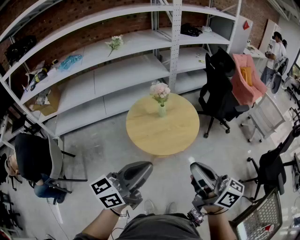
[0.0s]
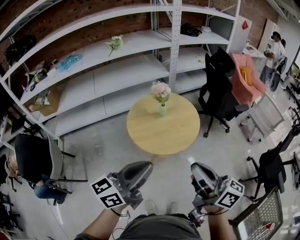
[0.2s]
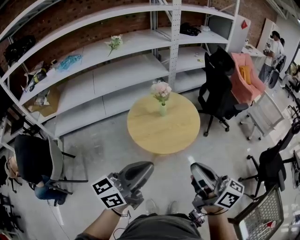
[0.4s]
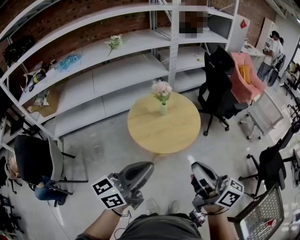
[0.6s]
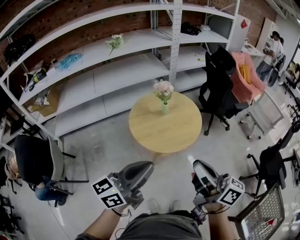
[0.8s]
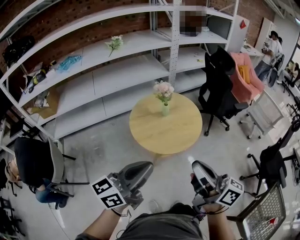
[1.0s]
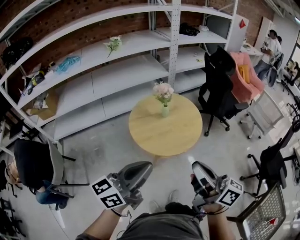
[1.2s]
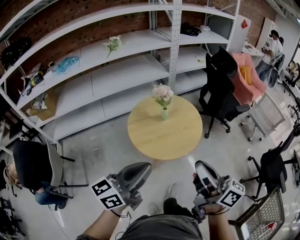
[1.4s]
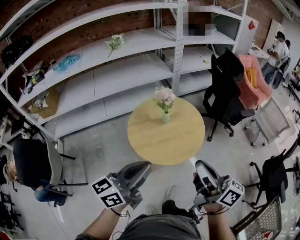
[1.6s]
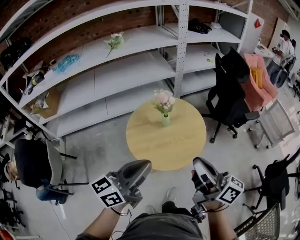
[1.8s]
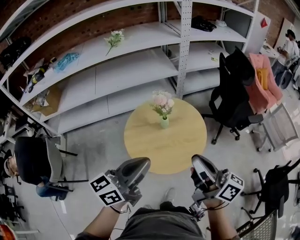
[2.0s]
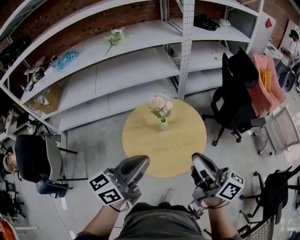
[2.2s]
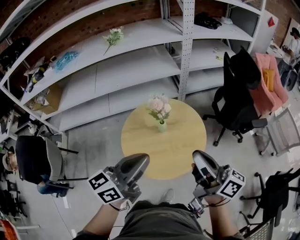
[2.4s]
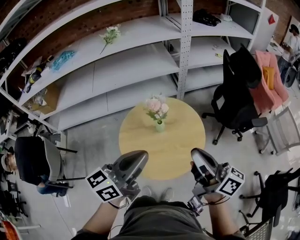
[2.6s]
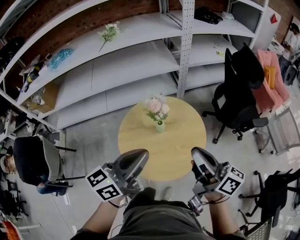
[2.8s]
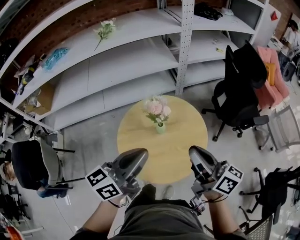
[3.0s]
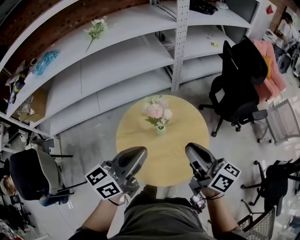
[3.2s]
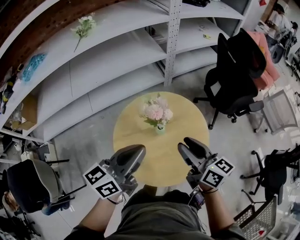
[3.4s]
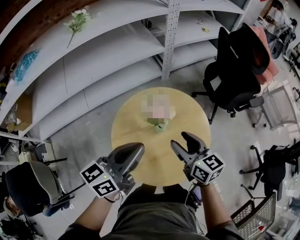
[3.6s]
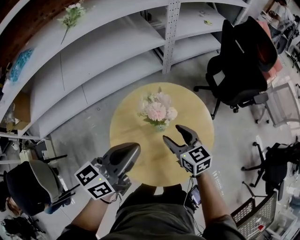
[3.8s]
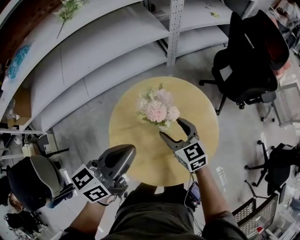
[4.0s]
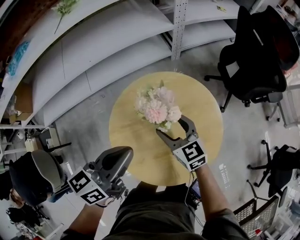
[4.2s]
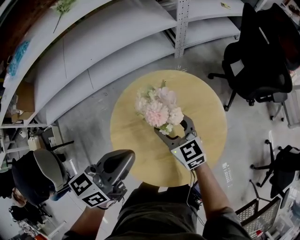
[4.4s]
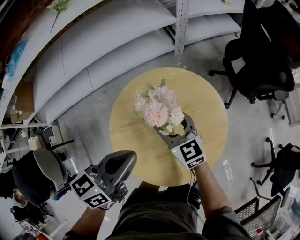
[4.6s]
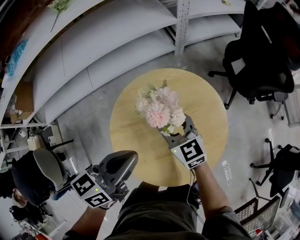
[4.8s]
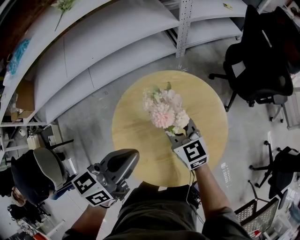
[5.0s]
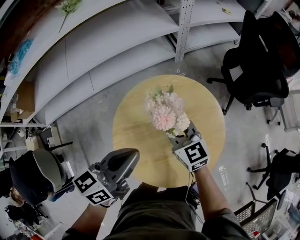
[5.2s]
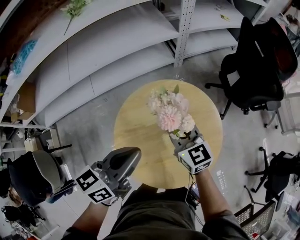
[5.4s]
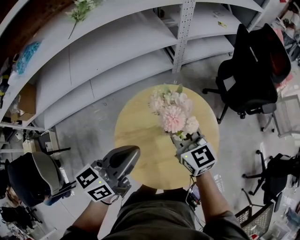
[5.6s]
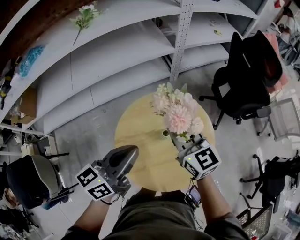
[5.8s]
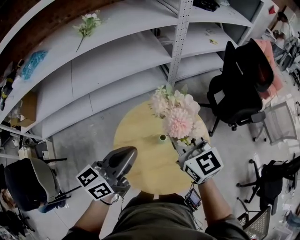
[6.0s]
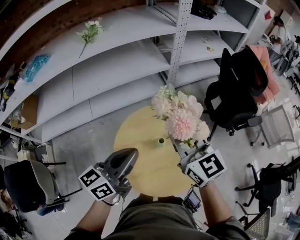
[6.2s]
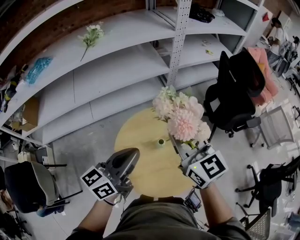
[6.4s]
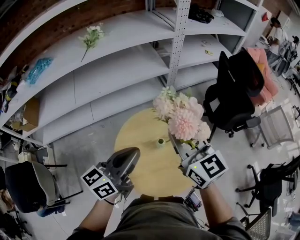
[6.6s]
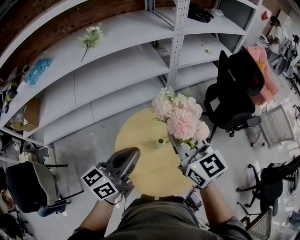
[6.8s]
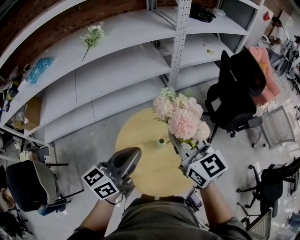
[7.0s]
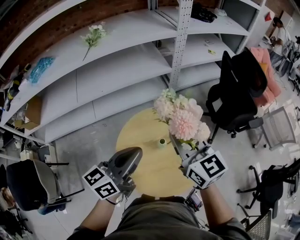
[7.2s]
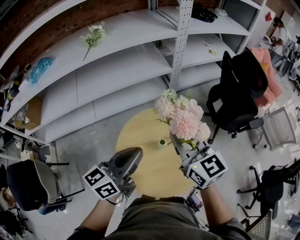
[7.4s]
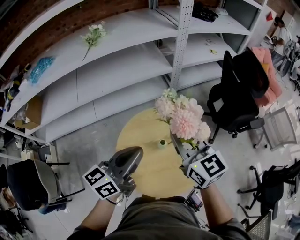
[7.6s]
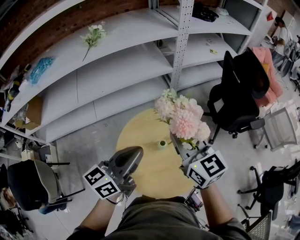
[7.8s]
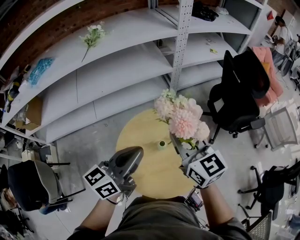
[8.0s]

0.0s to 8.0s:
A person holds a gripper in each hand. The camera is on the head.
0.0s to 1.6s: The two grippers go about 10 cm forward.
1.6s to 3.2s: Both grippers travel together forward, some 25 cm.
3.2s to 4.8s: The left gripper heads downward and forward, covering approximately 15 cm; the right gripper travels downward, forward and to the left by some 30 cm, rotates approximately 40 degrees, and opens.
4.8s to 6.4s: The left gripper travels upward by approximately 10 cm. The right gripper travels upward by approximately 25 cm, and closes up.
6.4s to 8.0s: There are only small adjustments of the grippers.

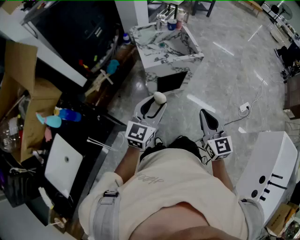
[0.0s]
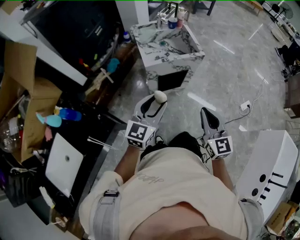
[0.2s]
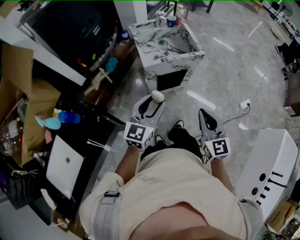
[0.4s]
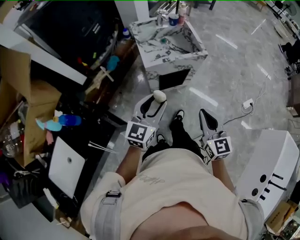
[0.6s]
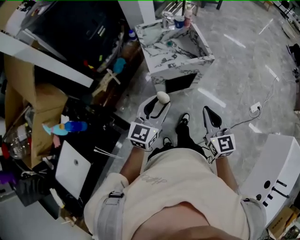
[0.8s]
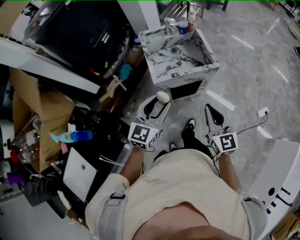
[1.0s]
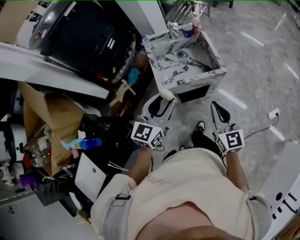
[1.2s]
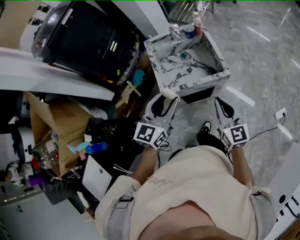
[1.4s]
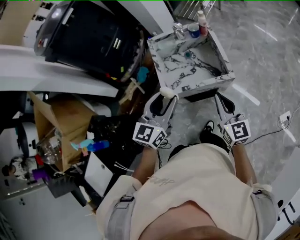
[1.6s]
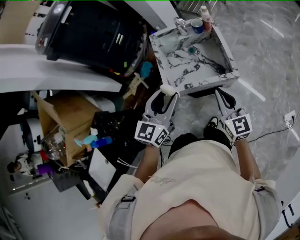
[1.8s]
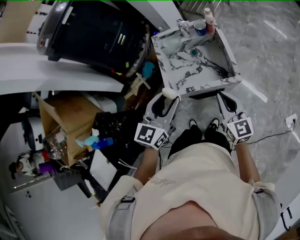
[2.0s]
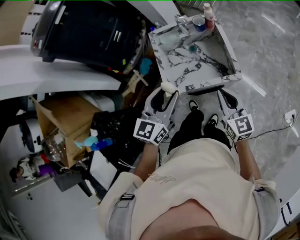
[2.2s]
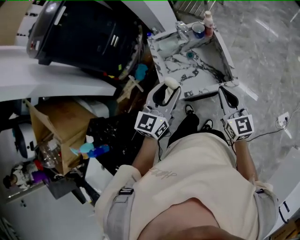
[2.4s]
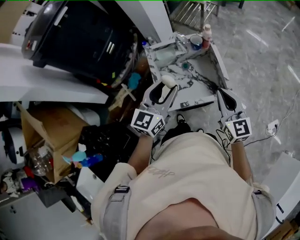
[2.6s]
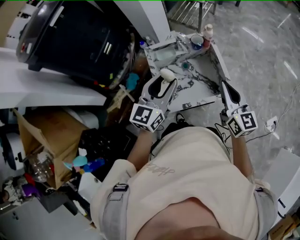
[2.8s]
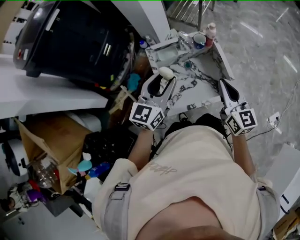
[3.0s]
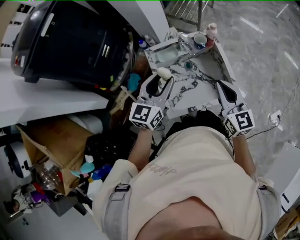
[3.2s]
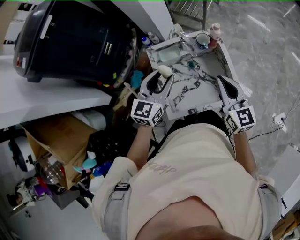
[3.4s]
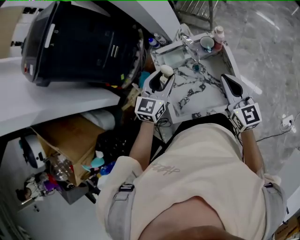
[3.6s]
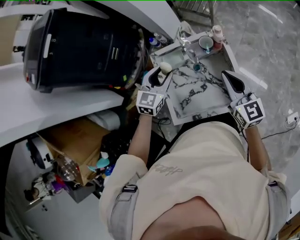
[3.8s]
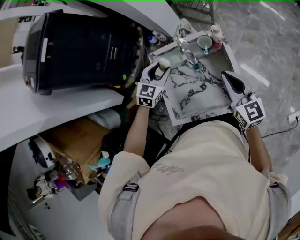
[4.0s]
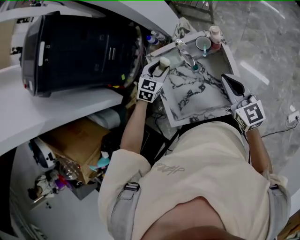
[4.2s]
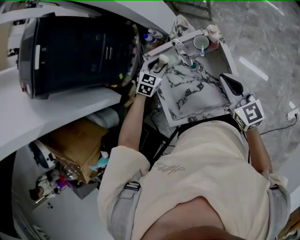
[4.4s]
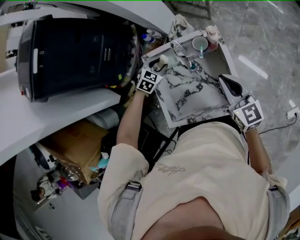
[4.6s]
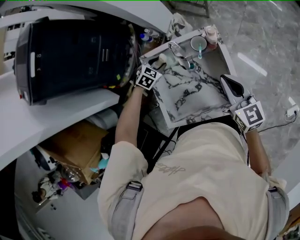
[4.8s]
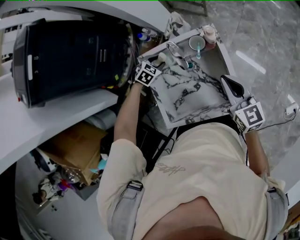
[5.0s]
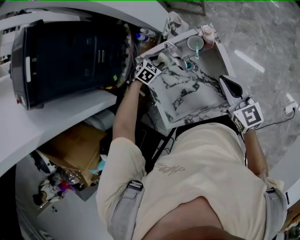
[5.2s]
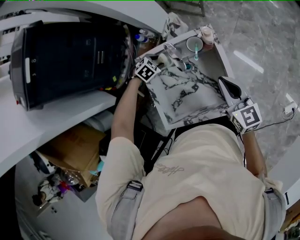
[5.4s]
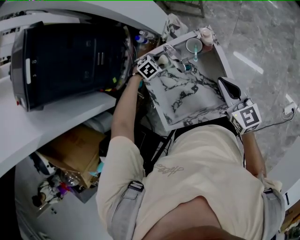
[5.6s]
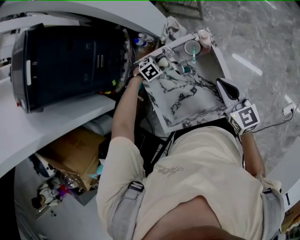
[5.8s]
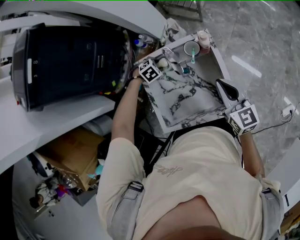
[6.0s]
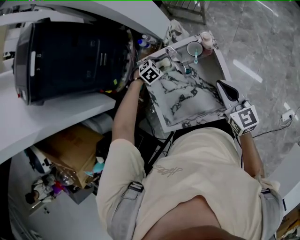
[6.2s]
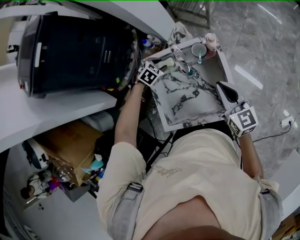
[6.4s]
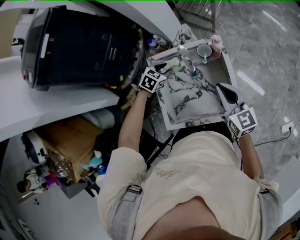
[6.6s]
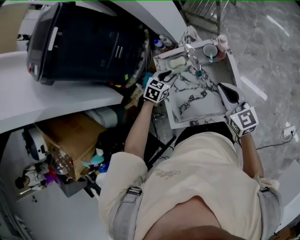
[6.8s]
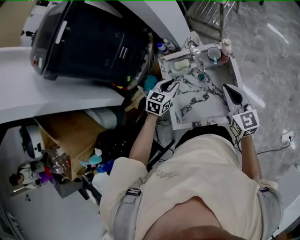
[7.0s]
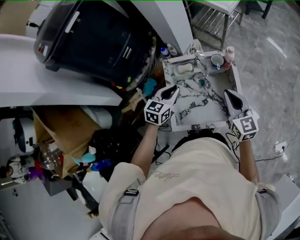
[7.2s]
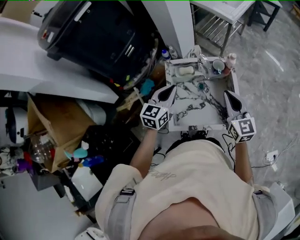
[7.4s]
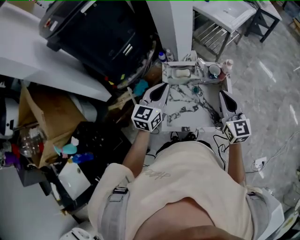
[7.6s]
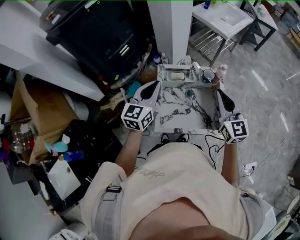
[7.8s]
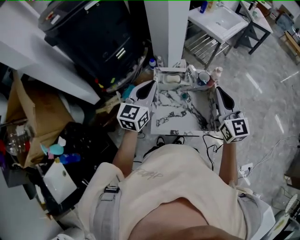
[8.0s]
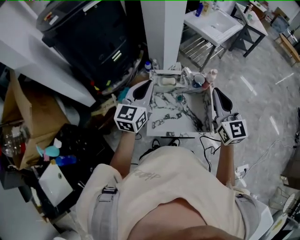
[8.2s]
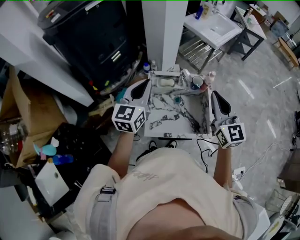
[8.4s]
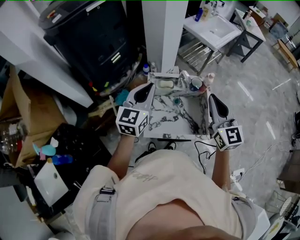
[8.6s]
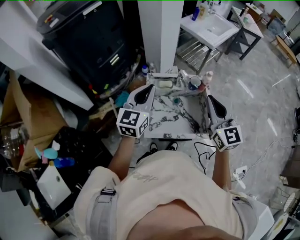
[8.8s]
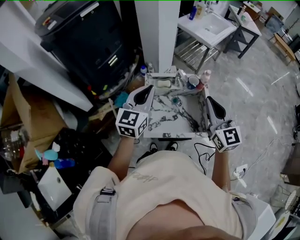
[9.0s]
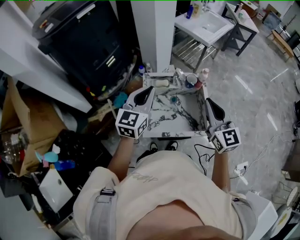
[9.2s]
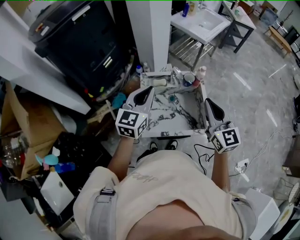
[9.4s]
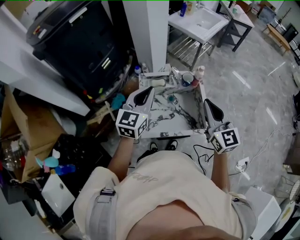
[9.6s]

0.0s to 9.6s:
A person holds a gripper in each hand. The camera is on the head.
0.0s to 1.6s: Both grippers travel together forward, approximately 30 cm.
1.6s to 3.2s: Both grippers move forward, some 20 cm.
3.2s to 4.8s: The right gripper moves forward, to the right and downward, some 15 cm, while the left gripper travels downward and forward by approximately 30 cm, and tips its fingers downward by roughly 50 degrees.
6.4s to 8.0s: The left gripper is displaced upward and backward by roughly 35 cm, points its fingers roughly 60 degrees further upward, and closes its fingers; the right gripper moves upward, approximately 15 cm, and changes its angle by roughly 20 degrees.
8.0s to 9.6s: The left gripper heads to the right, covering roughly 5 cm; the right gripper heads backward, covering some 5 cm.

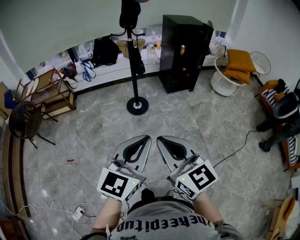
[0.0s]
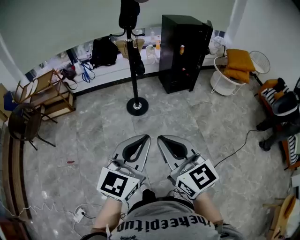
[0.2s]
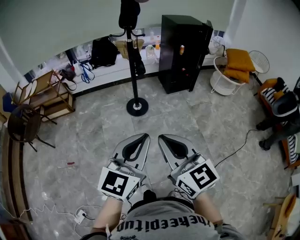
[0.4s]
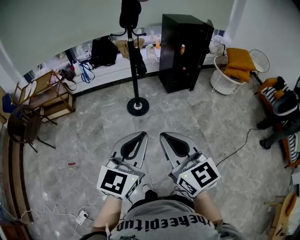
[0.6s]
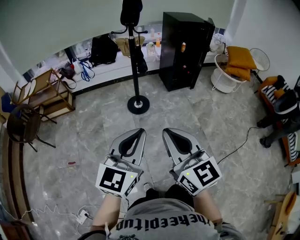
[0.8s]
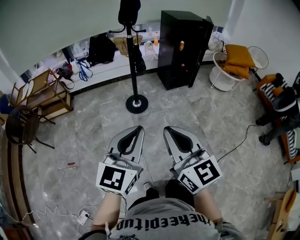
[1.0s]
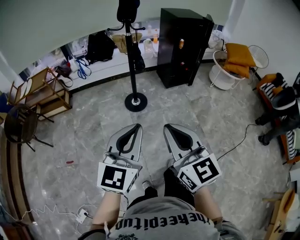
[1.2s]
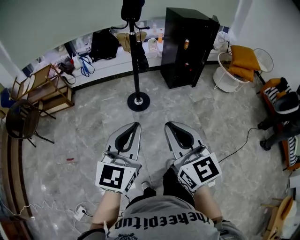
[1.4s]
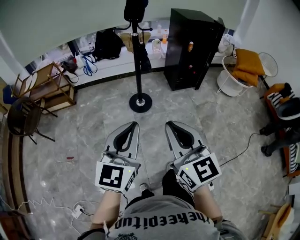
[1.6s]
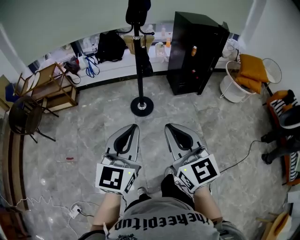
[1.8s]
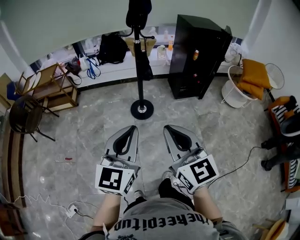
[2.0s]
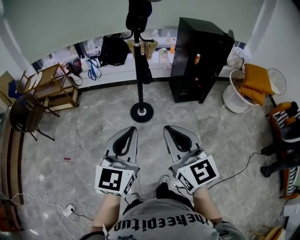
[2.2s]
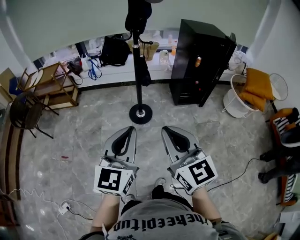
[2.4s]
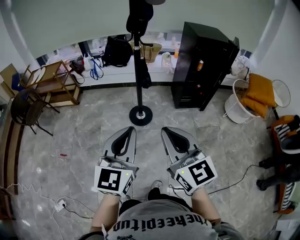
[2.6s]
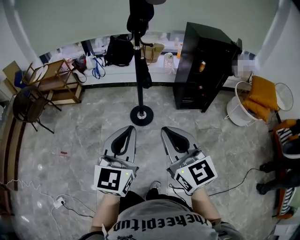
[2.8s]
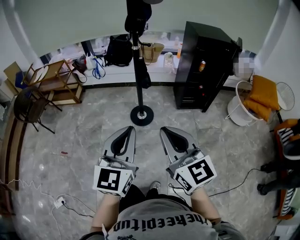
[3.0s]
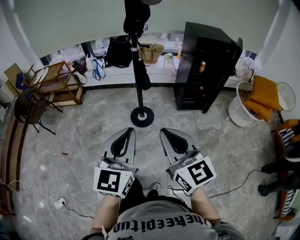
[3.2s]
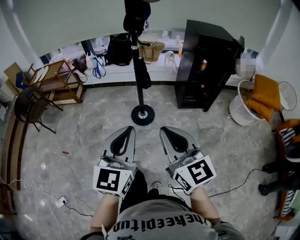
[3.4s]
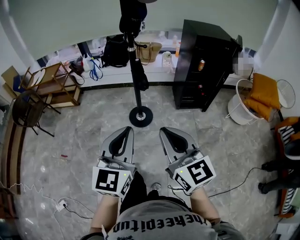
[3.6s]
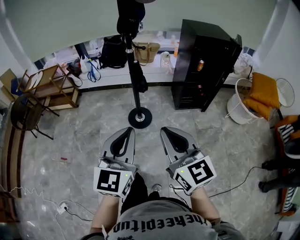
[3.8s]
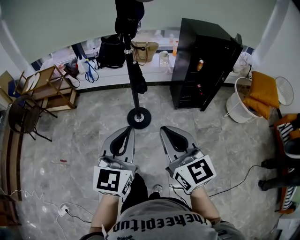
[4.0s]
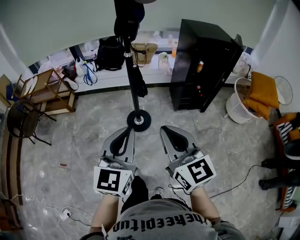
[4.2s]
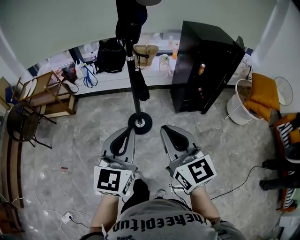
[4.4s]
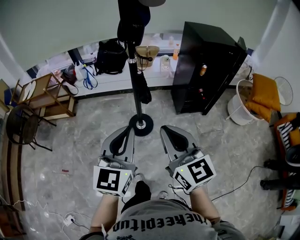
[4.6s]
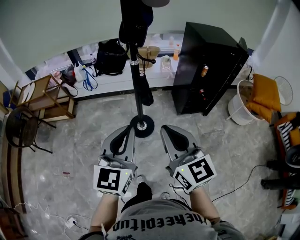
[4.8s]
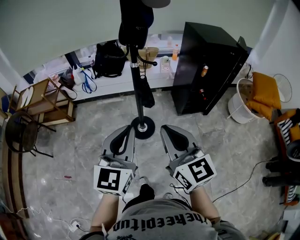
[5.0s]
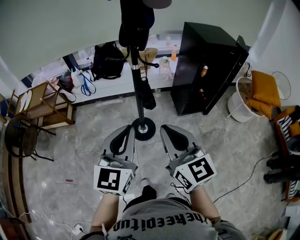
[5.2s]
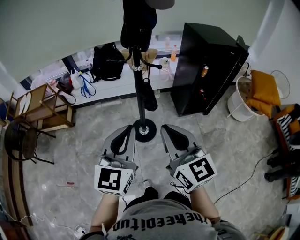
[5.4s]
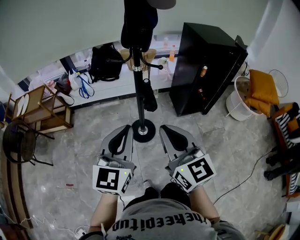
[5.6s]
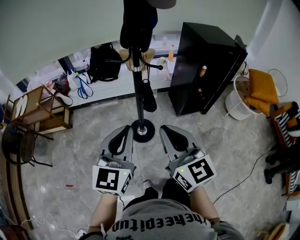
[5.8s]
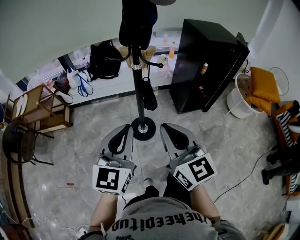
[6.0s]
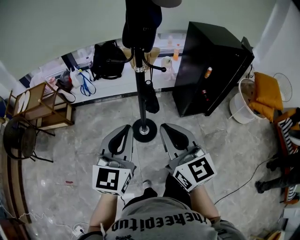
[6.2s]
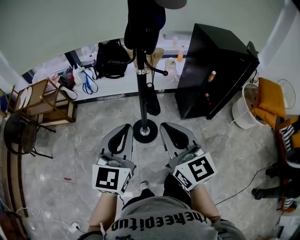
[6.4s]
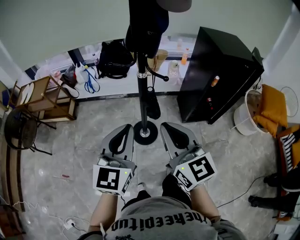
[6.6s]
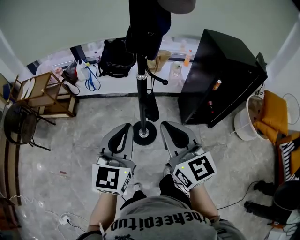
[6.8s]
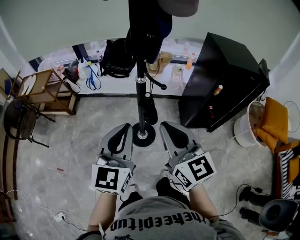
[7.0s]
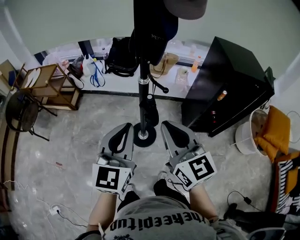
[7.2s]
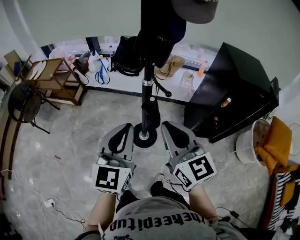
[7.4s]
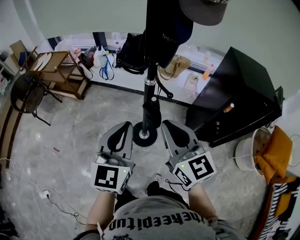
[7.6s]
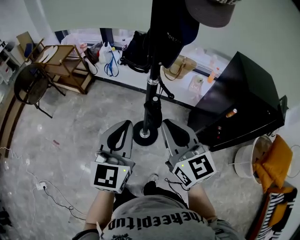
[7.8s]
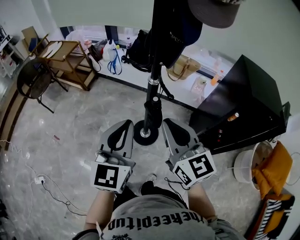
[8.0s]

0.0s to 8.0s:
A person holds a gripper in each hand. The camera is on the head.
0.0s to 1.6s: The right gripper is displaced forward by roughly 10 cm, while the left gripper shifts about 10 cm forward and to the left.
1.6s to 3.2s: The grippers both shift to the right and forward by some 20 cm.
3.2s to 4.8s: The two grippers go roughly 20 cm forward.
4.8s to 6.4s: The grippers both shift forward by about 10 cm.
6.4s to 8.0s: The right gripper changes place by roughly 15 cm, and swivels roughly 30 degrees; the left gripper shifts by about 10 cm, and rotates roughly 30 degrees.
